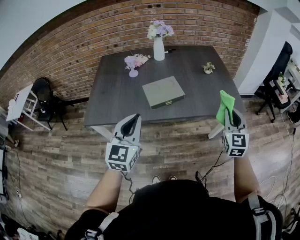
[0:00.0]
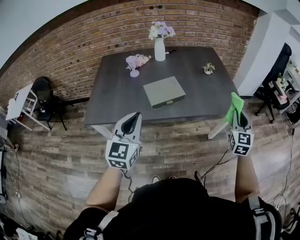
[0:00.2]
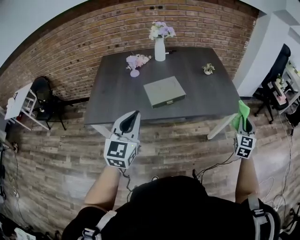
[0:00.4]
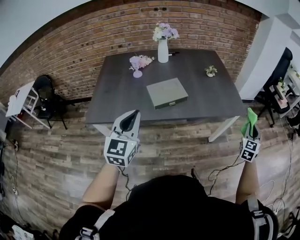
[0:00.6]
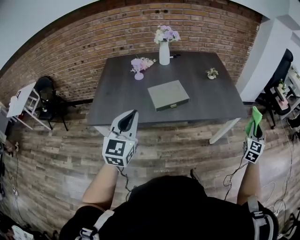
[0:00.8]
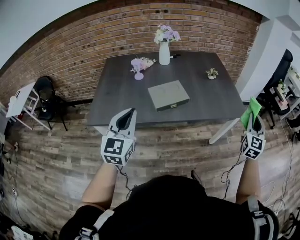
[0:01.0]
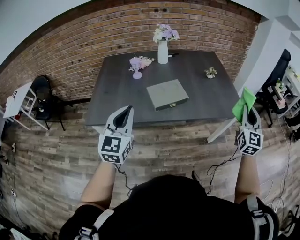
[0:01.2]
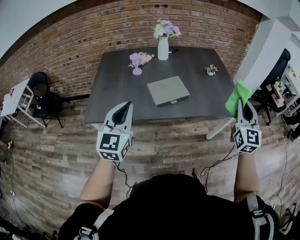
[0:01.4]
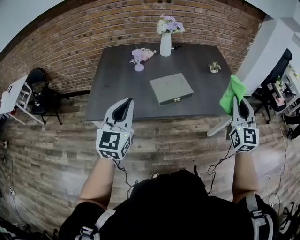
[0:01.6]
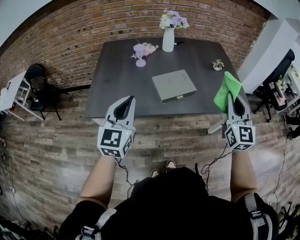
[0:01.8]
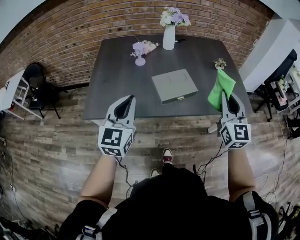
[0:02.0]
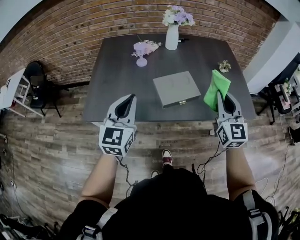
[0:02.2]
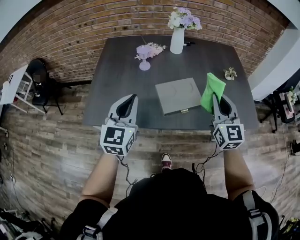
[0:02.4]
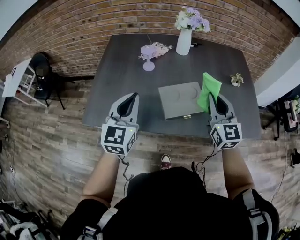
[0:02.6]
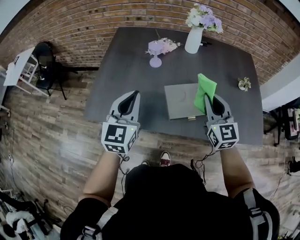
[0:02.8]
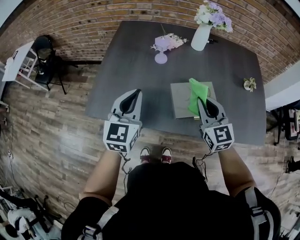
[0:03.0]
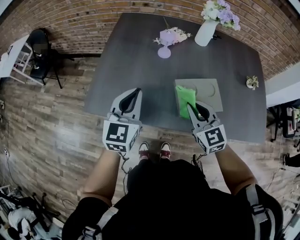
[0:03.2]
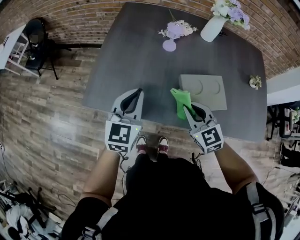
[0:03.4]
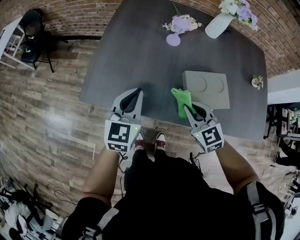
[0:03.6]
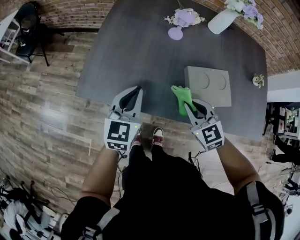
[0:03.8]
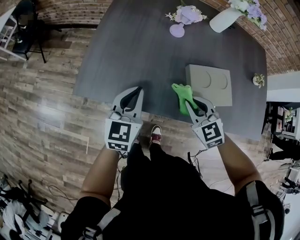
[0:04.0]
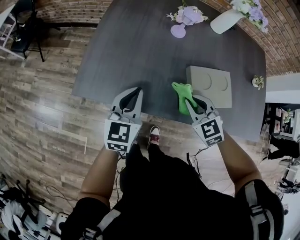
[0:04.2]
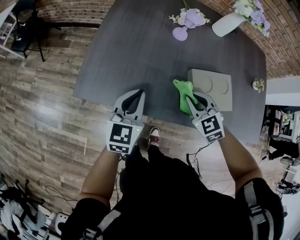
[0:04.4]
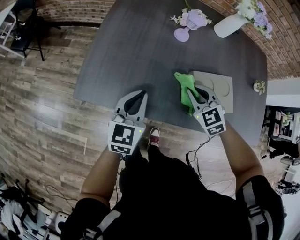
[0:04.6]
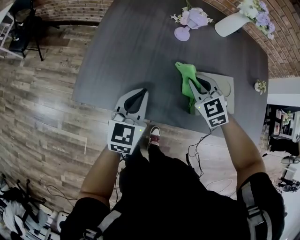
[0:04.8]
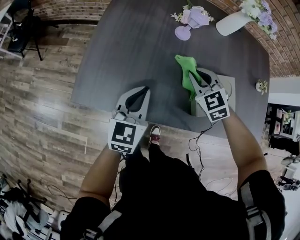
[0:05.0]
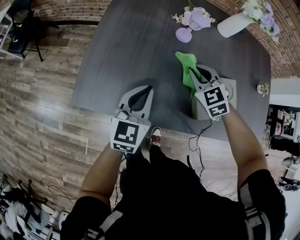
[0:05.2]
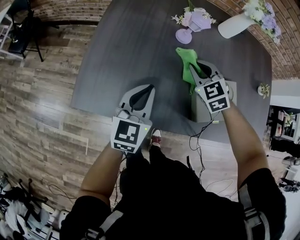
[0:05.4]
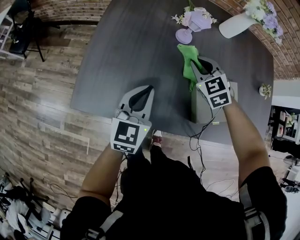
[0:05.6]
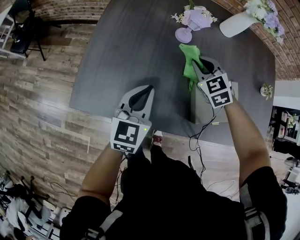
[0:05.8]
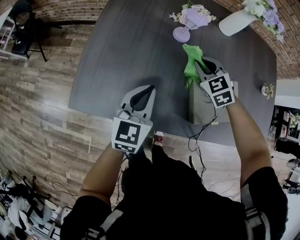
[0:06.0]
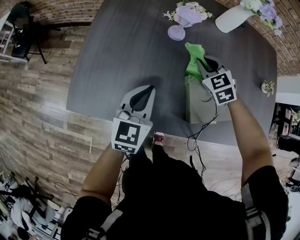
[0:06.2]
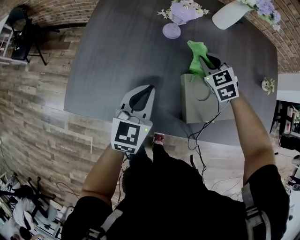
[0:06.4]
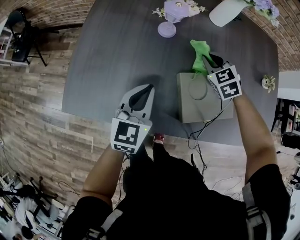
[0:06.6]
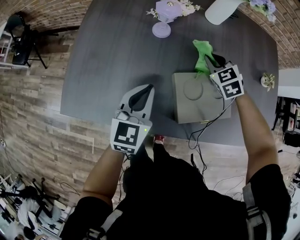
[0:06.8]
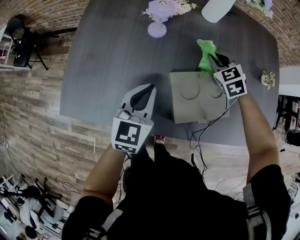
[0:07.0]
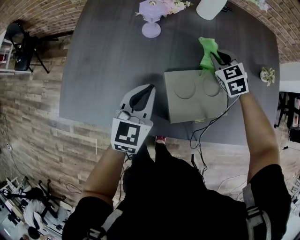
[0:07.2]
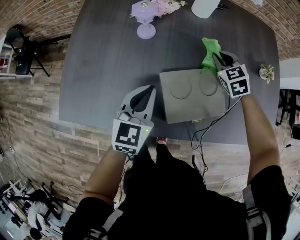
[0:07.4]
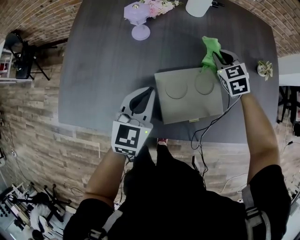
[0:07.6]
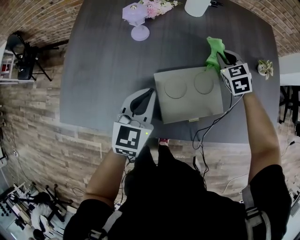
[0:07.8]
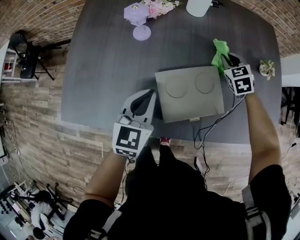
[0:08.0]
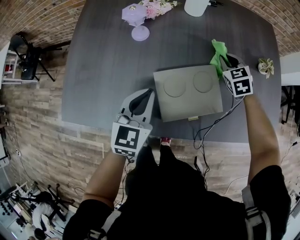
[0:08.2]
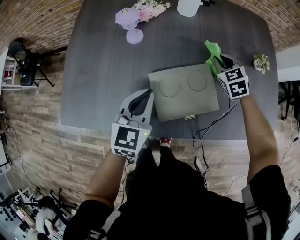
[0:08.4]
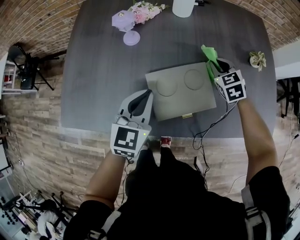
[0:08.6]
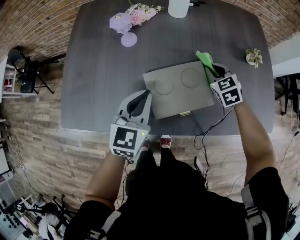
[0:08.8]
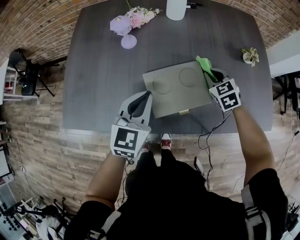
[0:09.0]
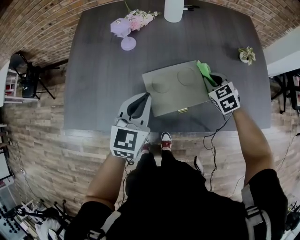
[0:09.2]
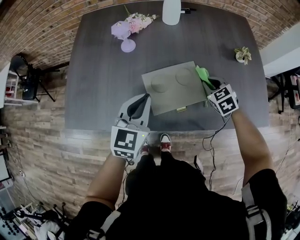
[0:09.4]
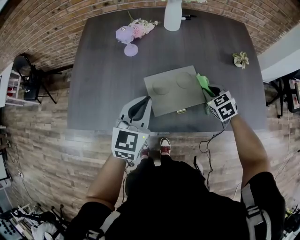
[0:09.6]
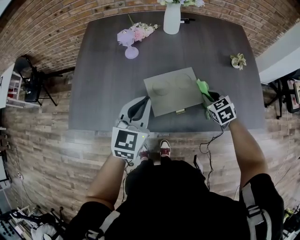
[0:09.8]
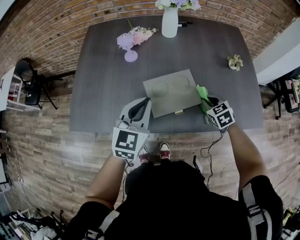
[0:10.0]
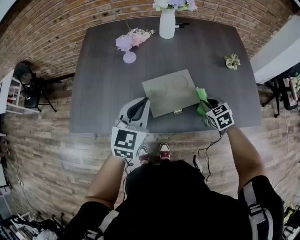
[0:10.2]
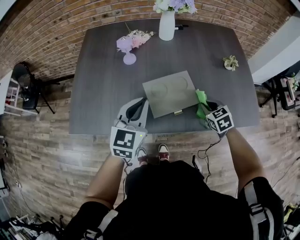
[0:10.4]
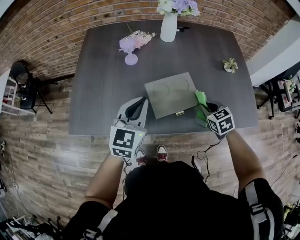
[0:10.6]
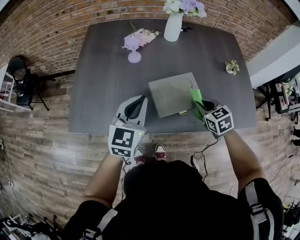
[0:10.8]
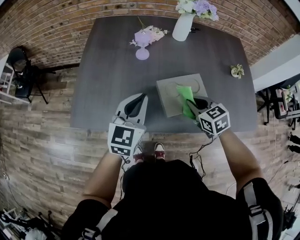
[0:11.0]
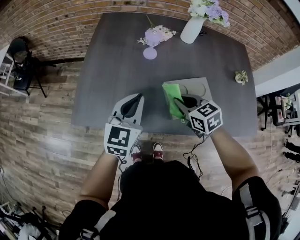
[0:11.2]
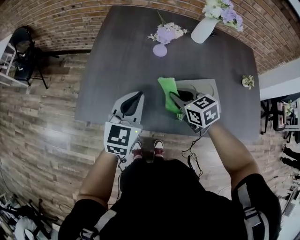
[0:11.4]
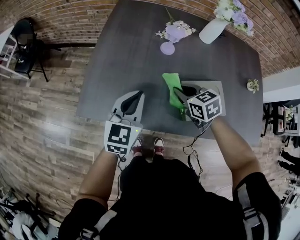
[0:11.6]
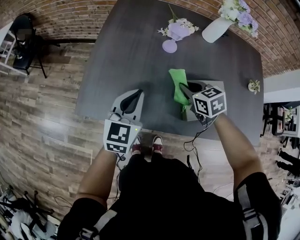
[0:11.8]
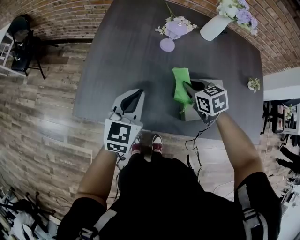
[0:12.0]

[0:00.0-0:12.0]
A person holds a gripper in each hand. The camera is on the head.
0:00.0 to 0:01.6: The left gripper shifts approximately 10 cm to the left. Meanwhile the right gripper moves upward, some 10 cm, and moves roughly 15 cm to the right and comes back.
0:01.6 to 0:03.0: The left gripper heads forward and downward, covering roughly 20 cm; the right gripper heads forward, to the left and downward, covering about 35 cm, and swivels some 40 degrees.
0:03.0 to 0:04.4: Both grippers move downward and to the left, roughly 20 cm. The right gripper tilts its fingers some 30 degrees downward.
0:04.4 to 0:06.0: The right gripper is displaced forward by some 20 cm; the left gripper moves forward, approximately 5 cm.
0:06.0 to 0:07.6: The left gripper heads to the right, covering roughly 15 cm. The right gripper moves to the right, approximately 25 cm.
0:07.6 to 0:09.0: The left gripper moves about 5 cm, while the right gripper heads backward, covering approximately 10 cm.
0:09.0 to 0:10.4: The right gripper goes approximately 15 cm backward. The left gripper goes roughly 5 cm upward.
0:10.4 to 0:12.0: The right gripper shifts roughly 30 cm to the left and forward; the left gripper travels to the left by about 20 cm.

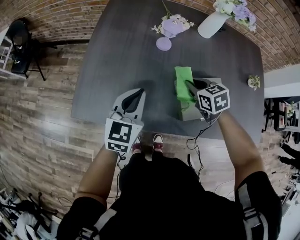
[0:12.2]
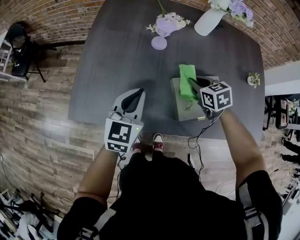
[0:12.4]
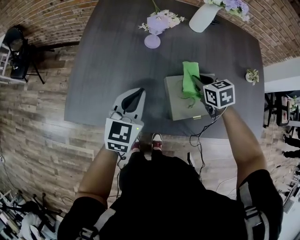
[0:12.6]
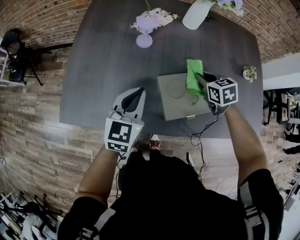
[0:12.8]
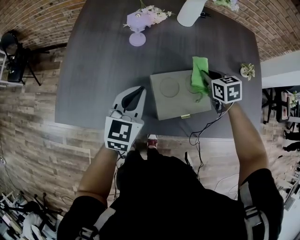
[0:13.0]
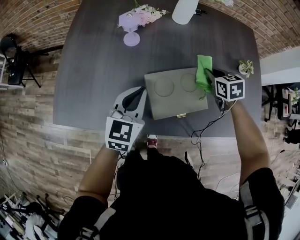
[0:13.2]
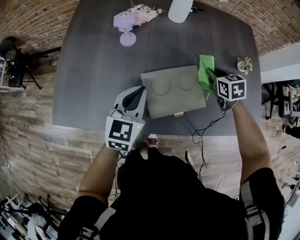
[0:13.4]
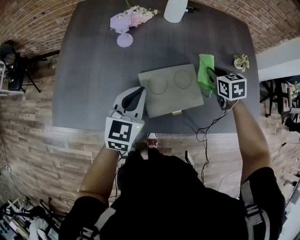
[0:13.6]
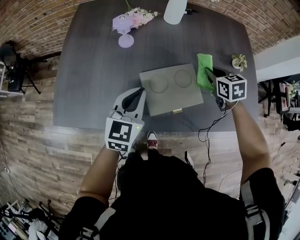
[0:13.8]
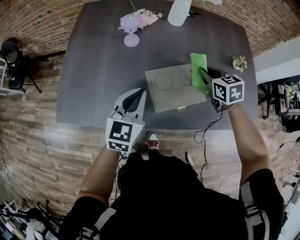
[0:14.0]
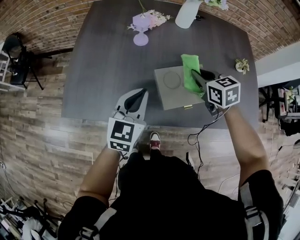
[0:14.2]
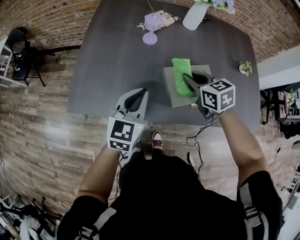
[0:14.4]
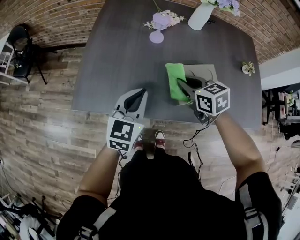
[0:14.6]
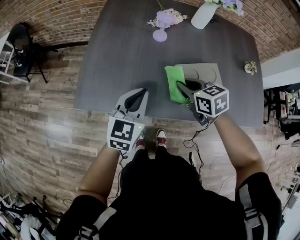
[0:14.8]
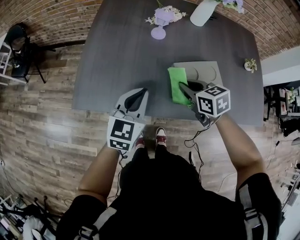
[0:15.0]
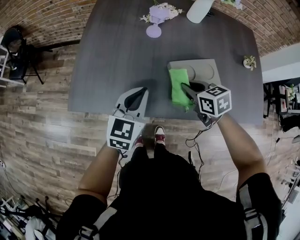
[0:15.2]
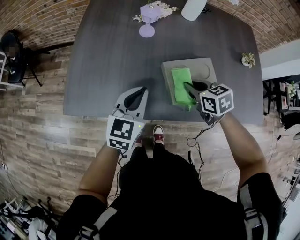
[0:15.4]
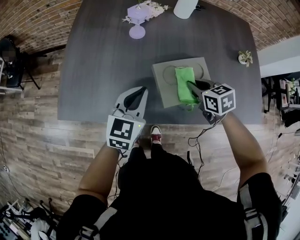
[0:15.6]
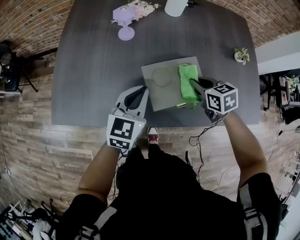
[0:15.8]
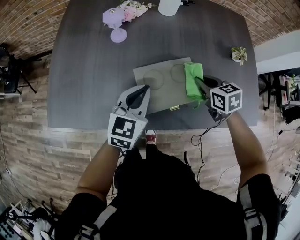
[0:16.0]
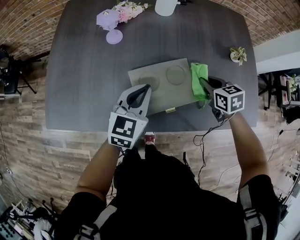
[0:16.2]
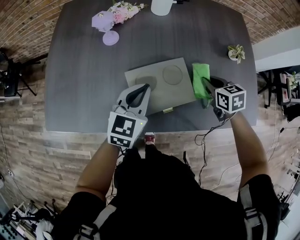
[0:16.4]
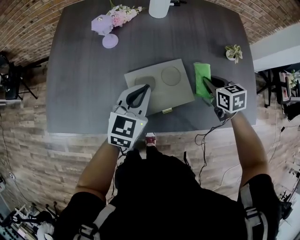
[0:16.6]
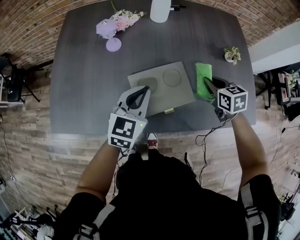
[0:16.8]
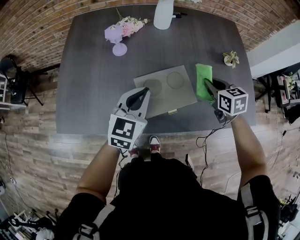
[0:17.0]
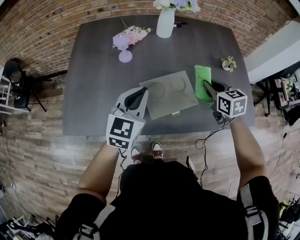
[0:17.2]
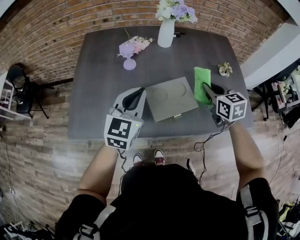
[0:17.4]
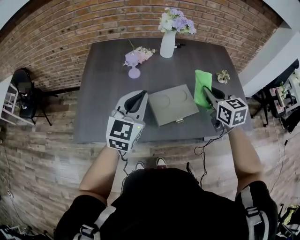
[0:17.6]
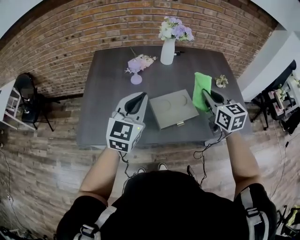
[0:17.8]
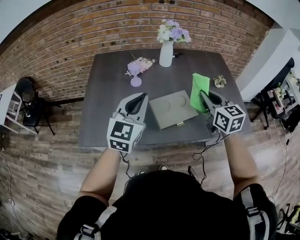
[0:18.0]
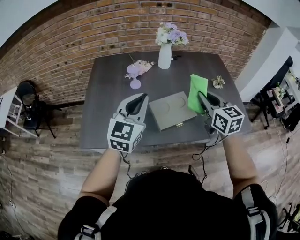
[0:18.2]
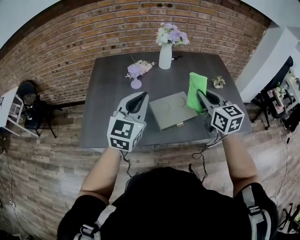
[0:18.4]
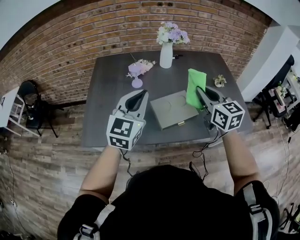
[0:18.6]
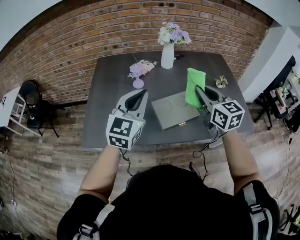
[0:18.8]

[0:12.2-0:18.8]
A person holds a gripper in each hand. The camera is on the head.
0:12.2 to 0:13.8: The left gripper goes approximately 15 cm to the right; the right gripper shifts about 25 cm to the right.
0:13.8 to 0:15.4: The right gripper is displaced to the left and backward by about 20 cm. Meanwhile the left gripper moves to the left, some 10 cm.
0:15.4 to 0:17.2: The left gripper shifts about 15 cm to the right and upward. The right gripper goes about 20 cm to the right and upward, and turns by approximately 20 degrees.
0:17.2 to 0:18.8: The right gripper shifts approximately 20 cm upward, backward and to the left, and rotates some 30 degrees, while the left gripper travels upward and backward by some 15 cm.

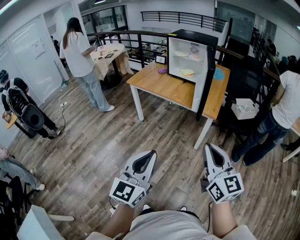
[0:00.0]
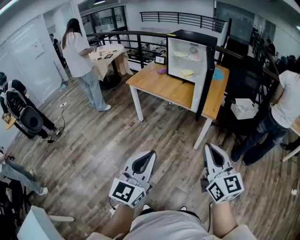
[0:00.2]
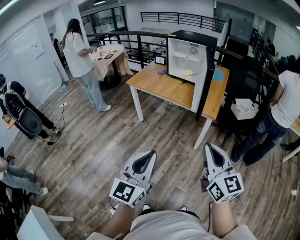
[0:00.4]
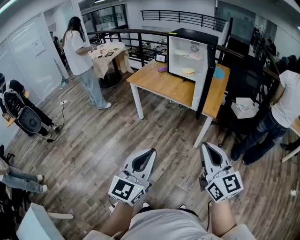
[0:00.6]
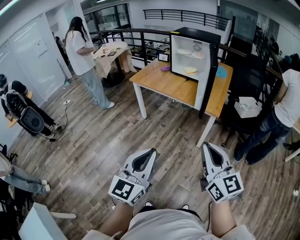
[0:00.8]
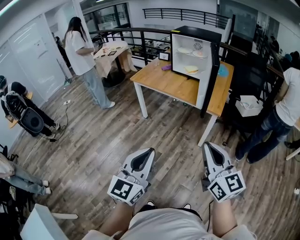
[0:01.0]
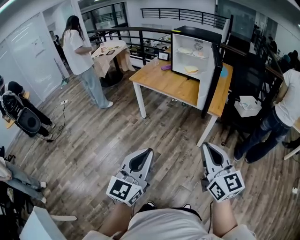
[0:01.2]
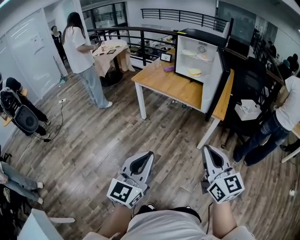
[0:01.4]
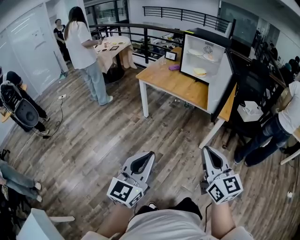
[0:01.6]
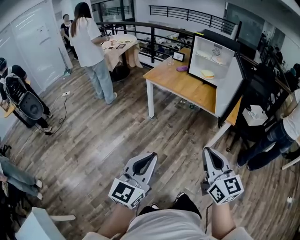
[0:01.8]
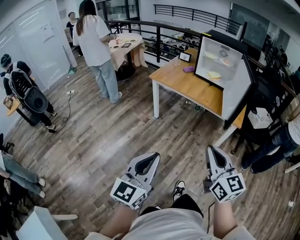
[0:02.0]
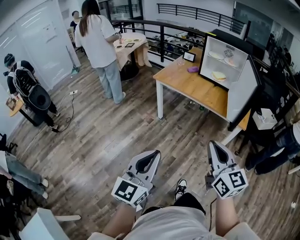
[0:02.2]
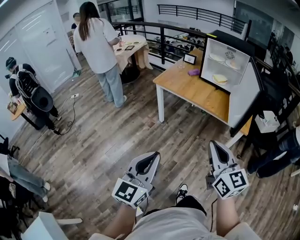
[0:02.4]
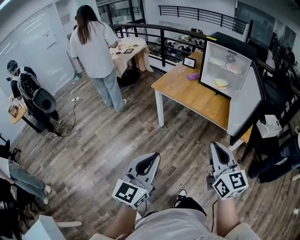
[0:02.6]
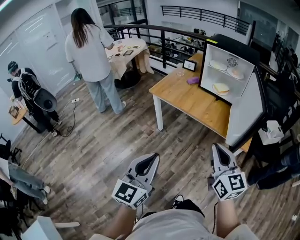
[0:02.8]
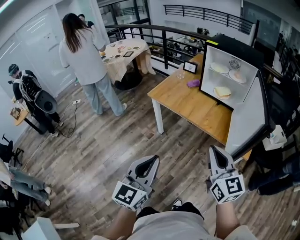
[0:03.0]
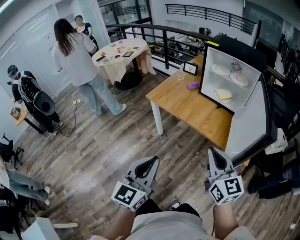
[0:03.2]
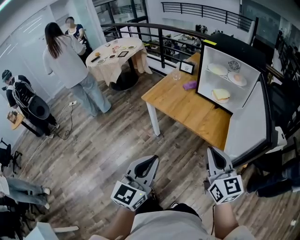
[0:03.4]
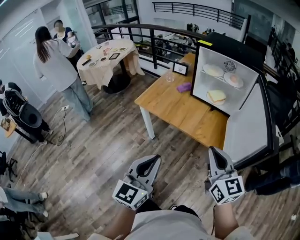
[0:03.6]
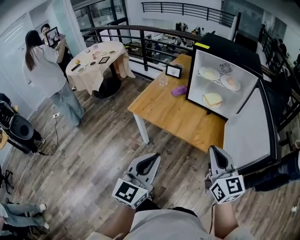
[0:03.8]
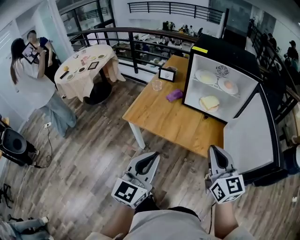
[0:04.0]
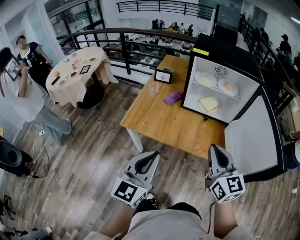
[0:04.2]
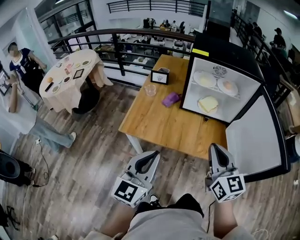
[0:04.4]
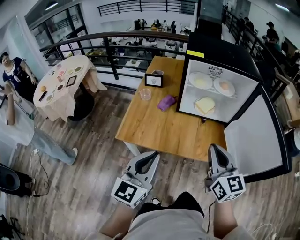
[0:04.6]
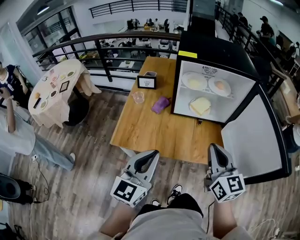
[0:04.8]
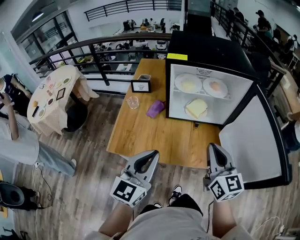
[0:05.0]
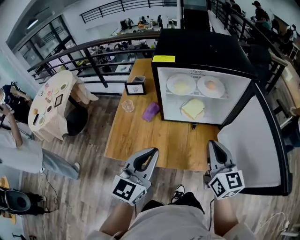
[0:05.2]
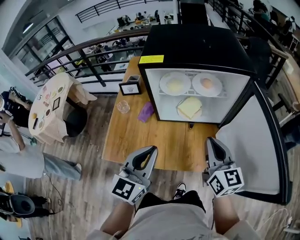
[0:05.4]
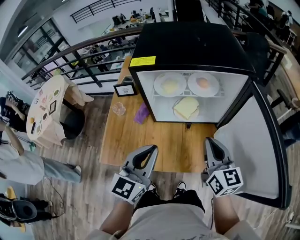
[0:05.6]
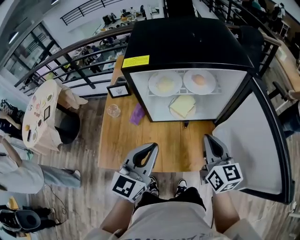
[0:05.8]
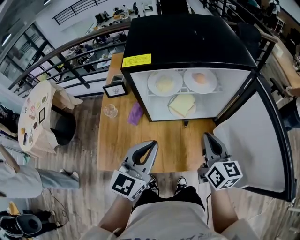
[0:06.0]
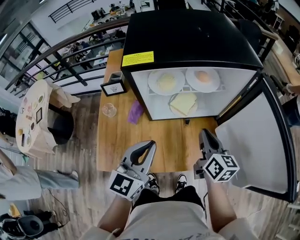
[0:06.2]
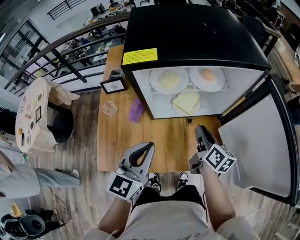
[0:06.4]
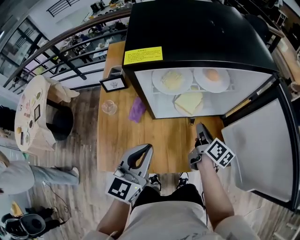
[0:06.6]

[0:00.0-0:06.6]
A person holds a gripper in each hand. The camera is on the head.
0:00.0 to 0:01.6: Both grippers travel together to the left, about 15 cm.
0:01.6 to 0:03.2: Both grippers move forward, some 30 cm.
0:03.2 to 0:05.0: The left gripper ends up roughly 40 cm from where it was, and rotates approximately 30 degrees. The right gripper changes place by about 30 cm, and turns by some 30 degrees.
0:05.0 to 0:06.6: The right gripper is displaced downward and forward by some 30 cm, and rolls clockwise, seen from behind, by roughly 50 degrees. Meanwhile the left gripper heads forward and downward, covering some 20 cm.
